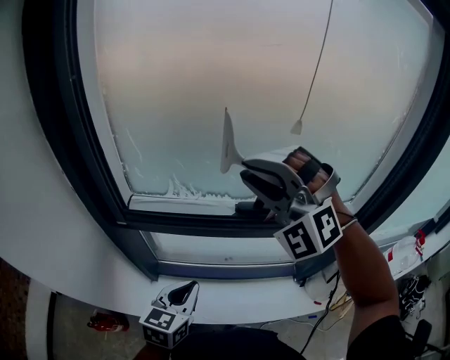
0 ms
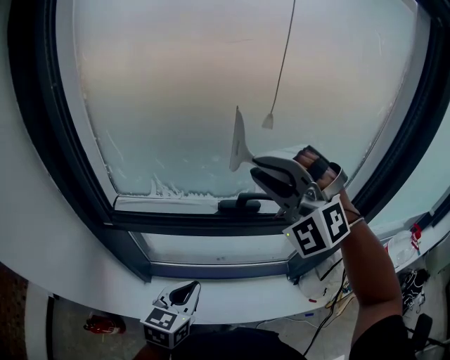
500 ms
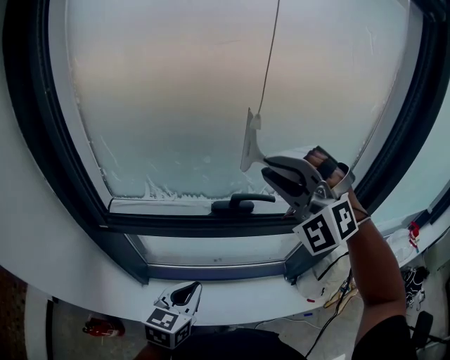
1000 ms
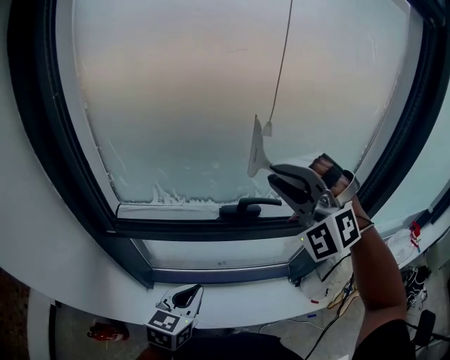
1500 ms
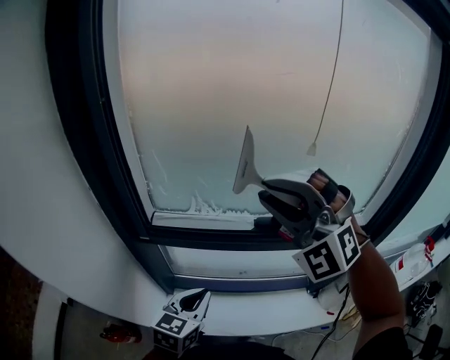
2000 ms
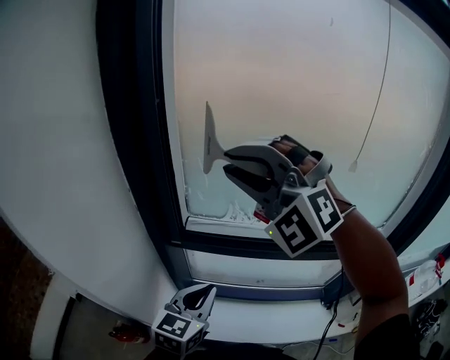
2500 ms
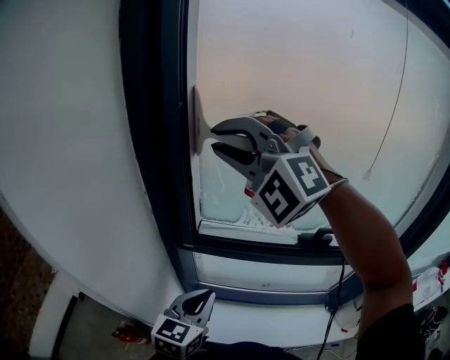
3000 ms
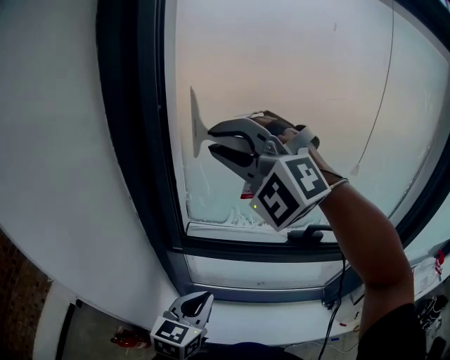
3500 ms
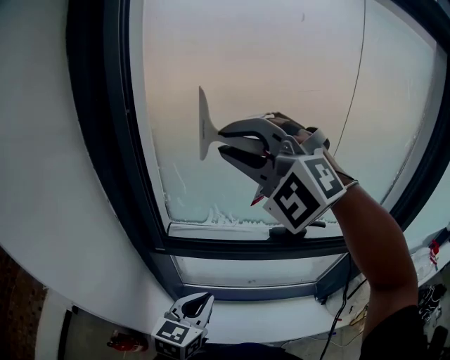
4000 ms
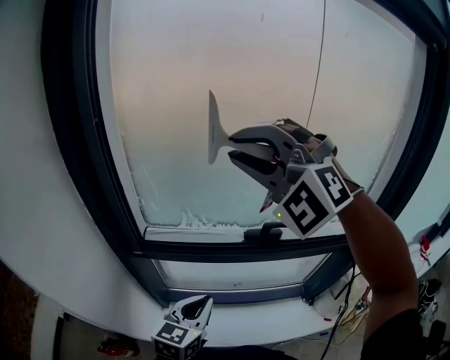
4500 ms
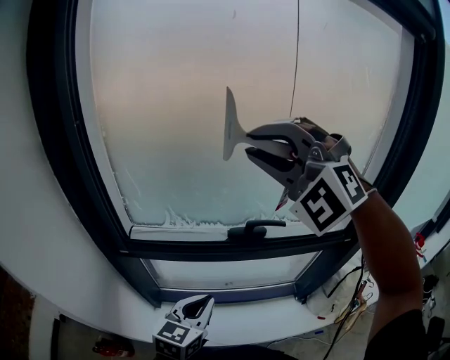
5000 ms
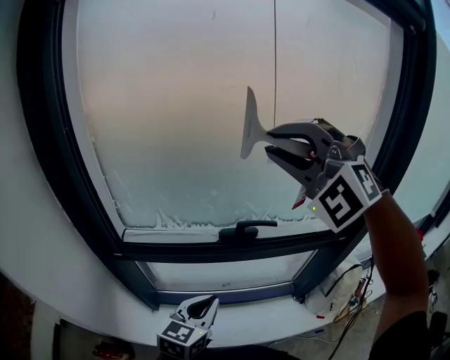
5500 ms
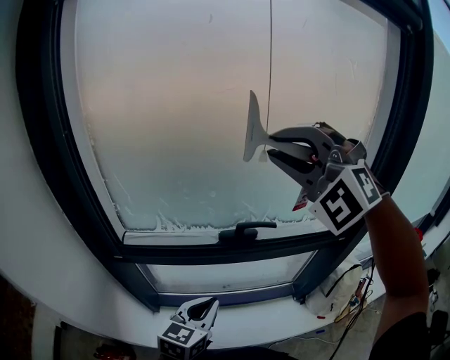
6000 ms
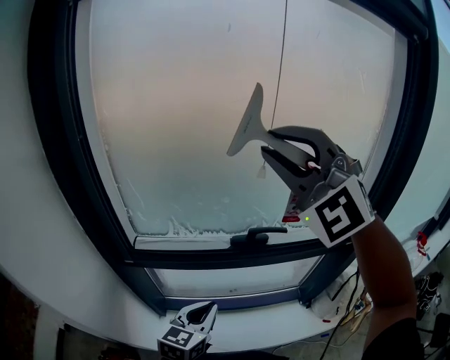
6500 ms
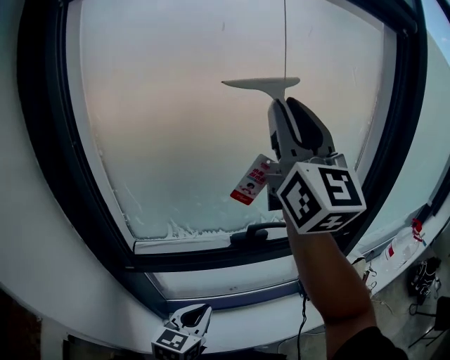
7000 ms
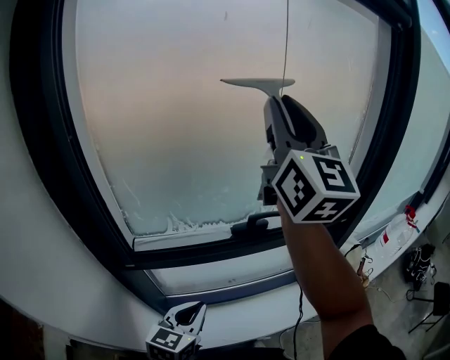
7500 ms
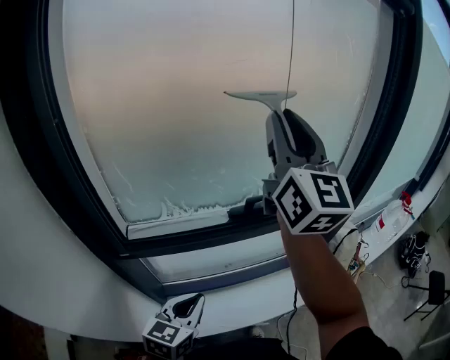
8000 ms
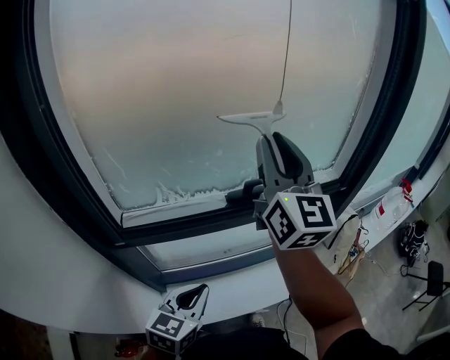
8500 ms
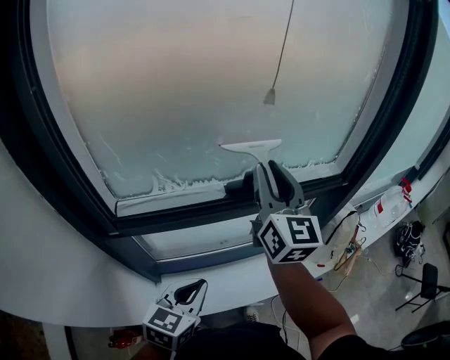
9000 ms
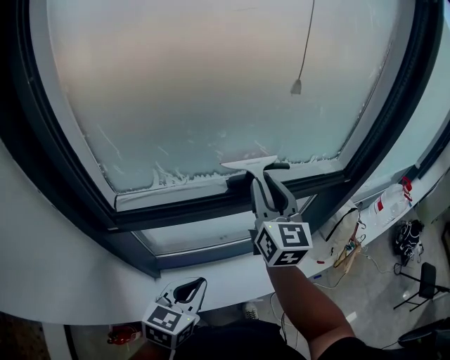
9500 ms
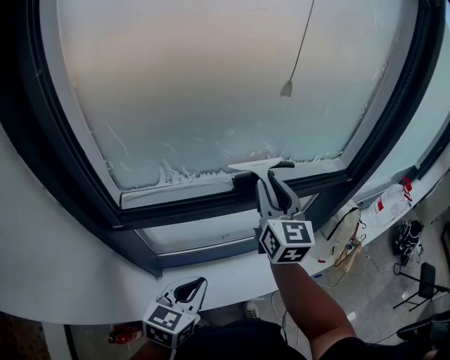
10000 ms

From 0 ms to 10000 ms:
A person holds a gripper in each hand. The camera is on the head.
From 0 ms to 2000 ms: The left gripper travels to the right and back again, approximately 5 cm each way; the right gripper travels to the right and back again, roughly 10 cm each way.
From 2000 ms to 4000 ms: The right gripper goes some 15 cm to the left, upward and forward.
From 4000 ms to 6000 ms: The left gripper travels to the right by approximately 15 cm. Meanwhile the right gripper travels to the right by about 25 cm.
From 6000 ms to 8000 ms: The left gripper is displaced to the left by about 10 cm. Meanwhile the right gripper travels upward and back again, roughly 10 cm each way, and twists some 70 degrees clockwise, seen from behind.
From 8000 ms to 10000 ms: The right gripper heads downward, covering approximately 30 cm, and swivels about 30 degrees.

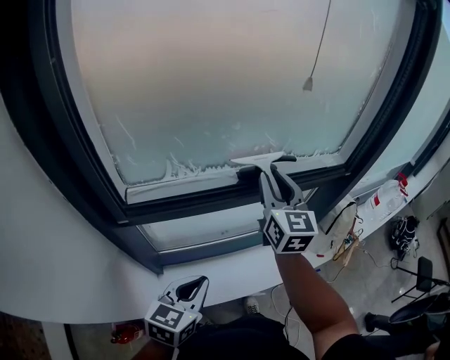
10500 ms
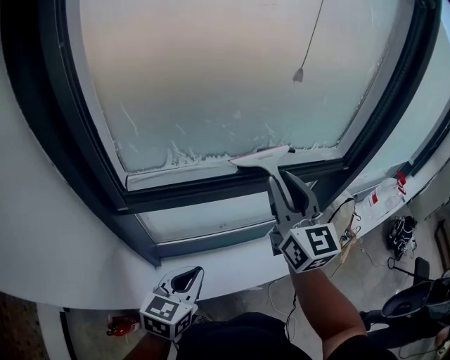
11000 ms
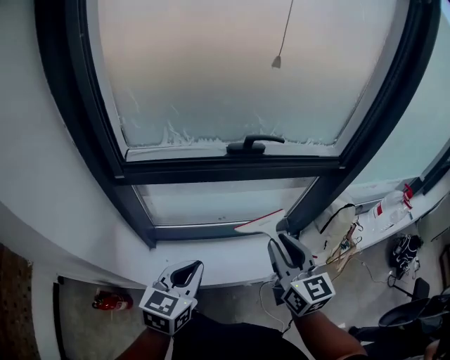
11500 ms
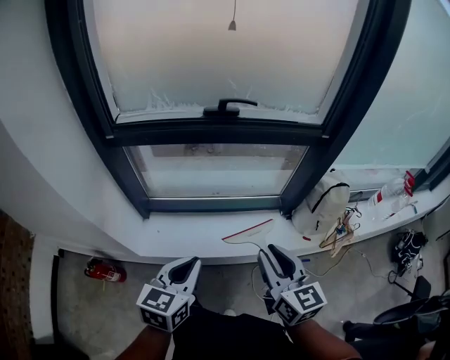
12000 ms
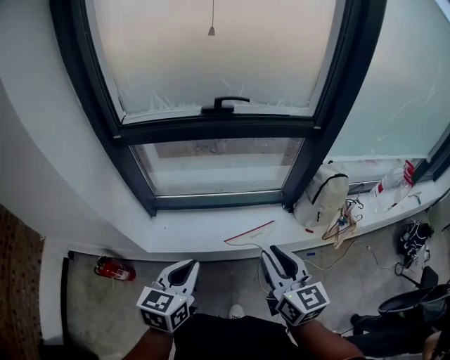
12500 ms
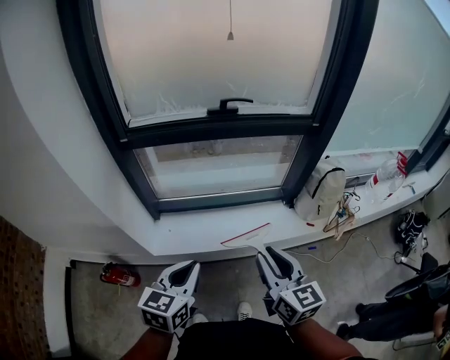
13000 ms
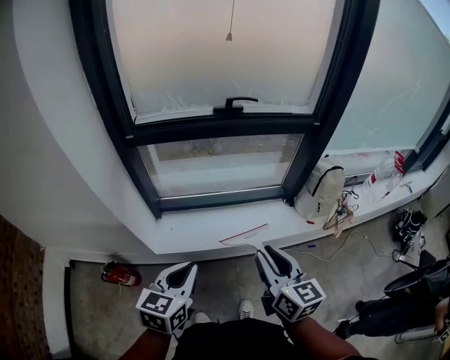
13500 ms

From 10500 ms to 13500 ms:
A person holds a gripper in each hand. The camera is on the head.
From 10500 ms to 12000 ms: The left gripper shifts about 25 cm to the right and backward; the right gripper shifts about 40 cm backward and to the right, and changes its angle by about 30 degrees.
From 12000 ms to 13500 ms: The grippers both shift backward and to the left by approximately 15 cm.

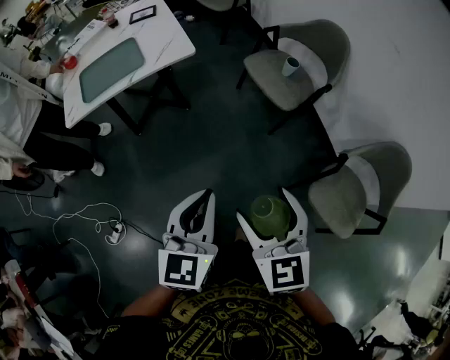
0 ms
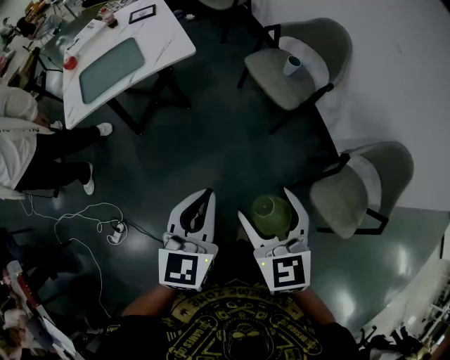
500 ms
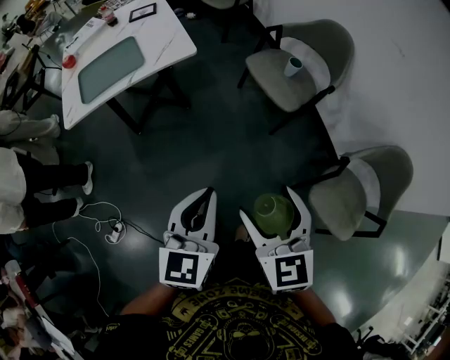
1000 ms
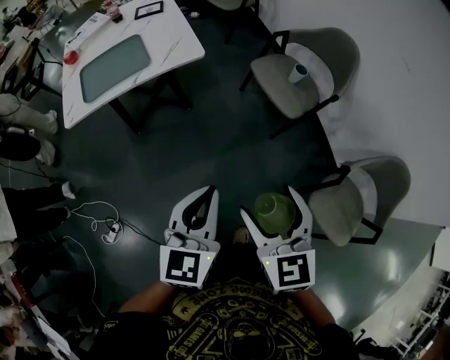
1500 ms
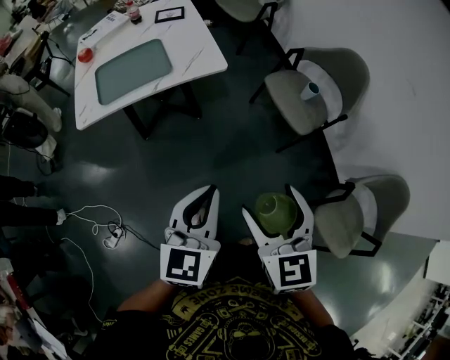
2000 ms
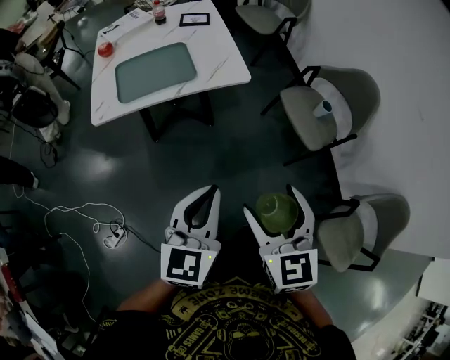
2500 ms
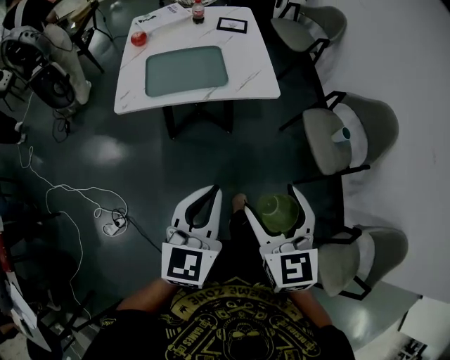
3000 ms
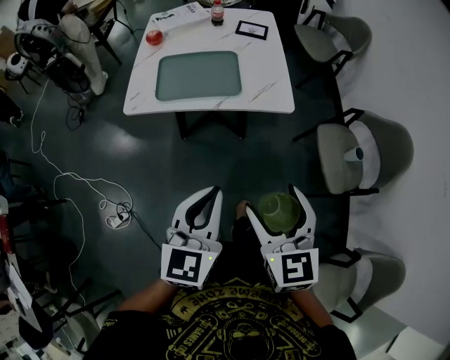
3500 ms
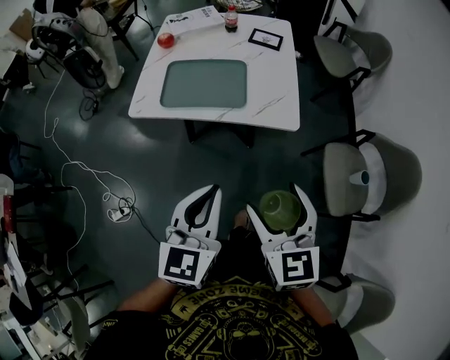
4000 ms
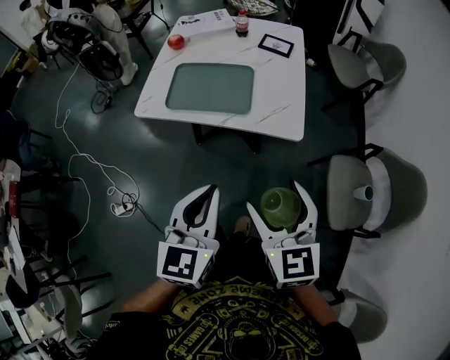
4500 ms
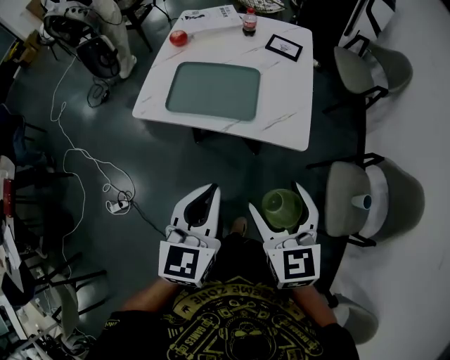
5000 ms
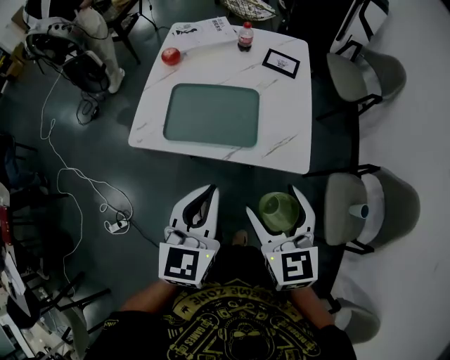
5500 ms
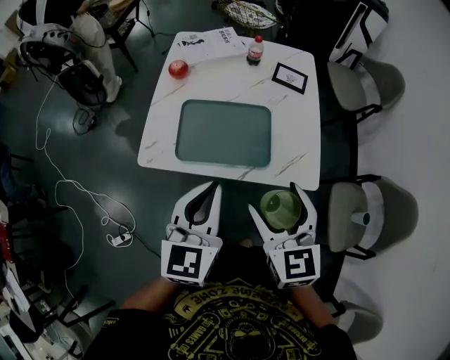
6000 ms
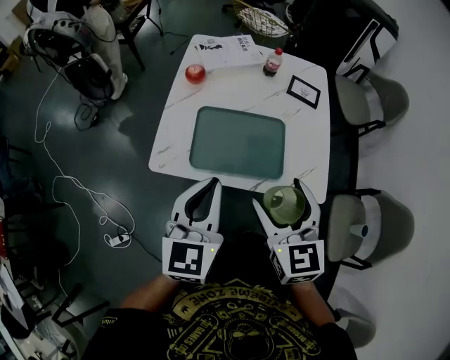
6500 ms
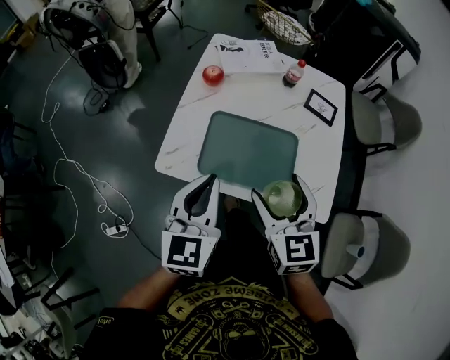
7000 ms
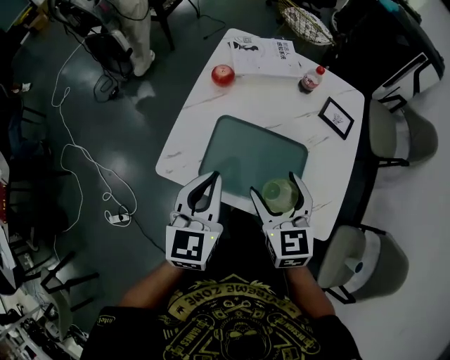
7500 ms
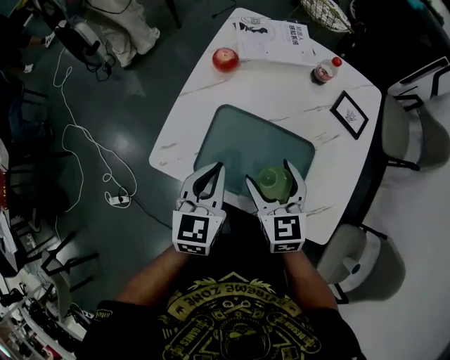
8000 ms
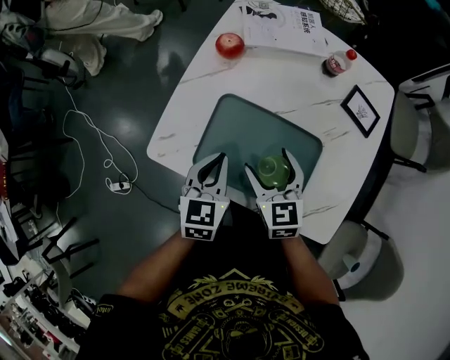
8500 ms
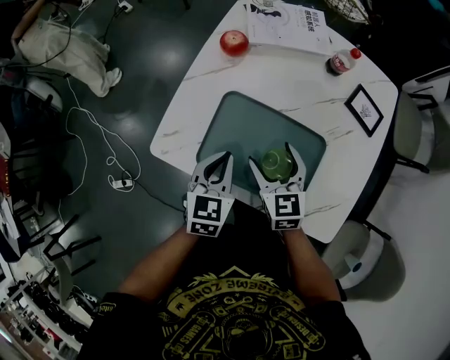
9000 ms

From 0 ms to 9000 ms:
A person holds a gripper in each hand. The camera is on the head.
From 0 ms to 2000 ms: The two grippers go approximately 15 cm to the left and forward.
From 2000 ms to 4500 ms: The left gripper shifts by roughly 20 cm, and rotates some 30 degrees, while the right gripper changes place by some 25 cm, and changes its angle by approximately 30 degrees.
From 4500 ms to 7000 ms: Both grippers move forward and to the left, roughly 35 cm.
From 7000 ms to 9000 ms: Both grippers move downward and forward, some 20 cm. The left gripper turns by some 20 degrees.

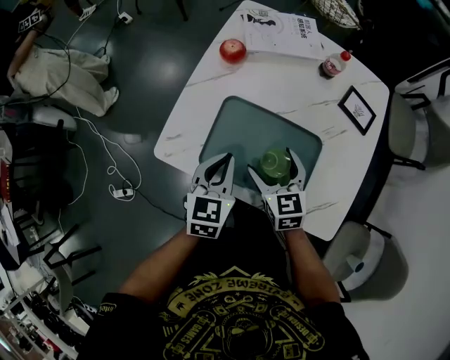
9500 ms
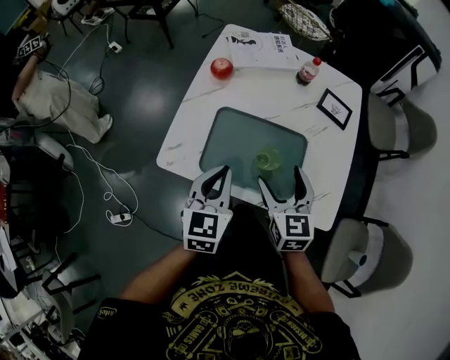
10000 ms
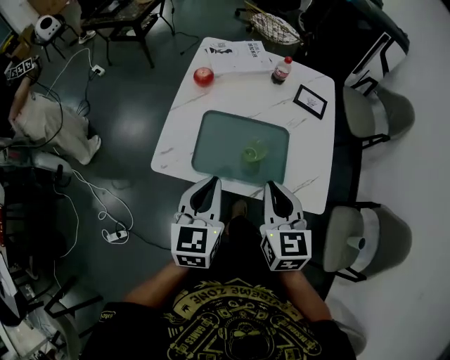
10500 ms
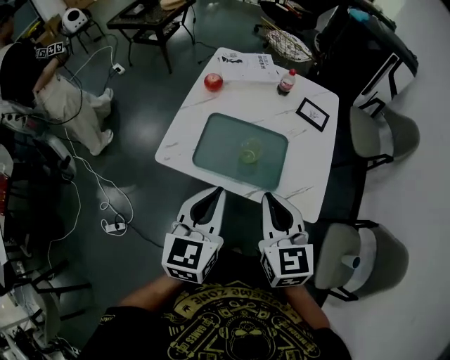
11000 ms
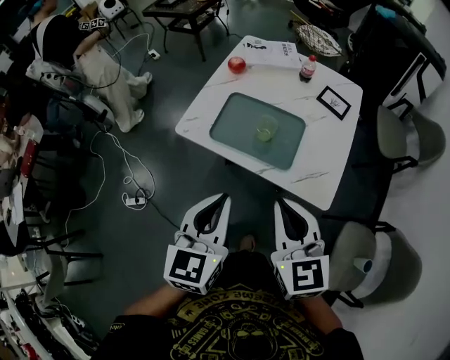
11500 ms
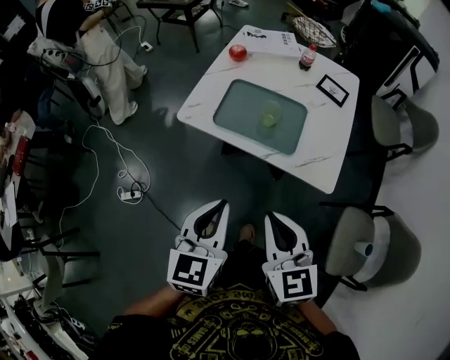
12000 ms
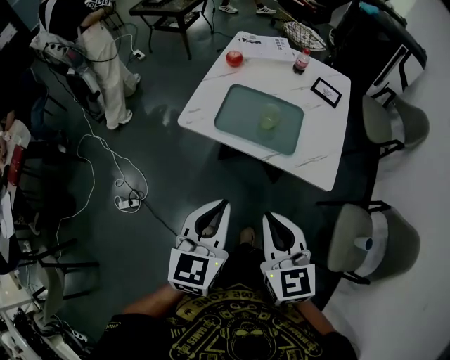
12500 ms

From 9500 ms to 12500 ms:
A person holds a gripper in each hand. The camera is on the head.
From 9500 ms to 11000 ms: The two grippers go approximately 25 cm upward and backward. The right gripper closes its fingers.
From 11000 ms to 12500 ms: The grippers both shift backward by approximately 15 cm.

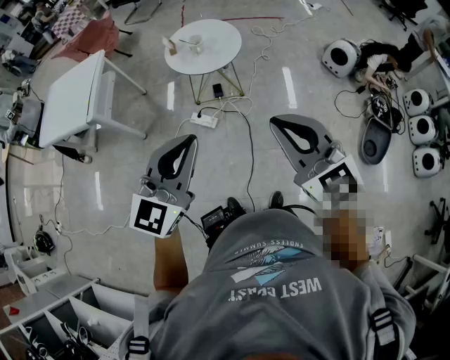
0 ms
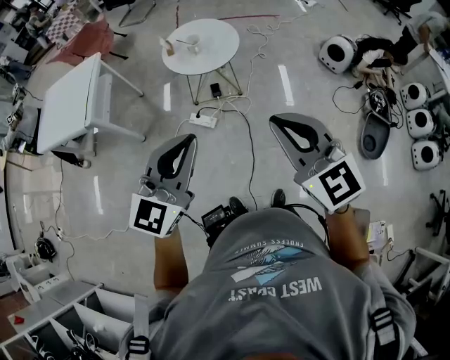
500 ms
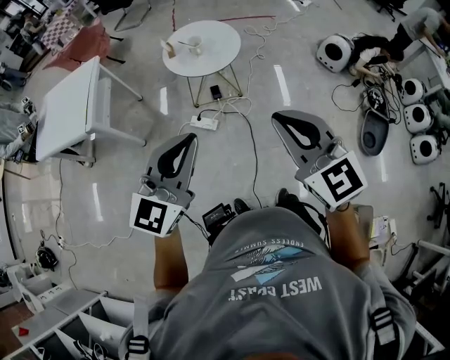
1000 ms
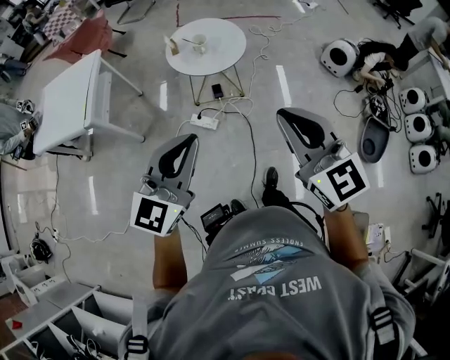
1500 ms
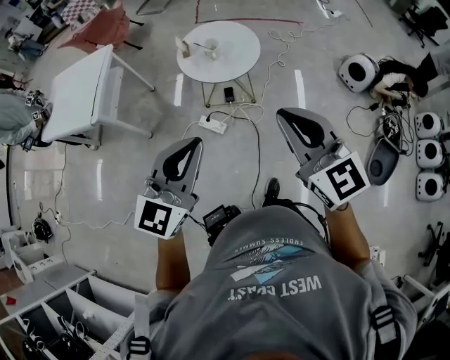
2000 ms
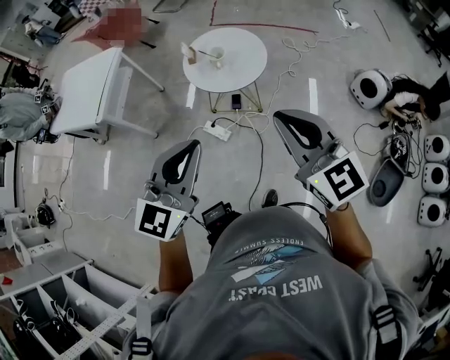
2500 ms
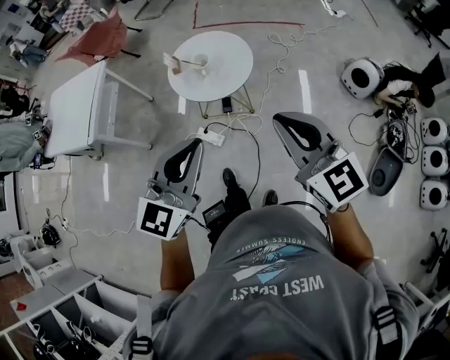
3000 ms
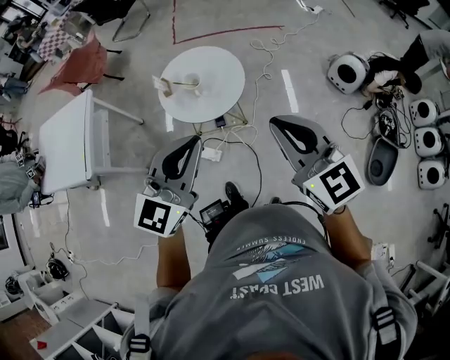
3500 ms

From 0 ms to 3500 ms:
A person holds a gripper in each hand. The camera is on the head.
From 0 ms to 2000 ms: Both grippers travel together forward, roughly 10 cm.
From 2000 ms to 3500 ms: Both grippers travel together forward, roughly 15 cm.
